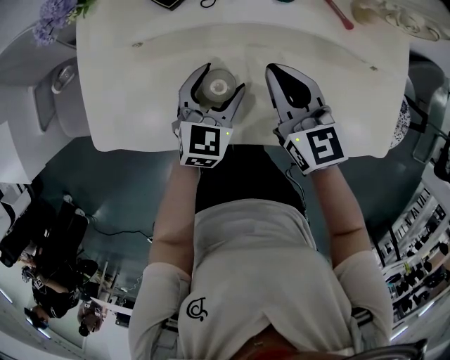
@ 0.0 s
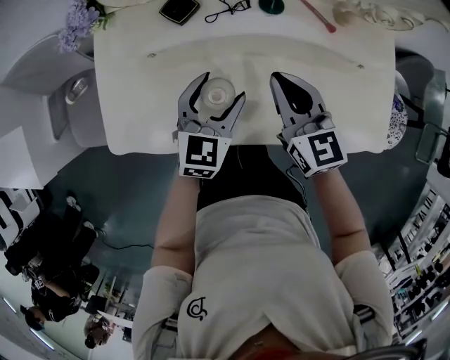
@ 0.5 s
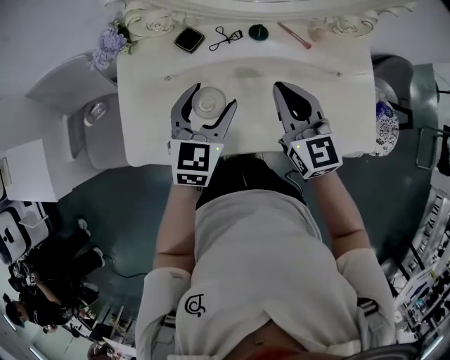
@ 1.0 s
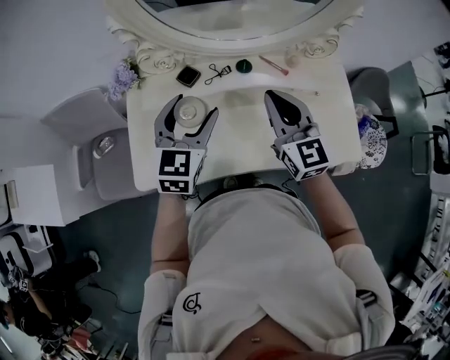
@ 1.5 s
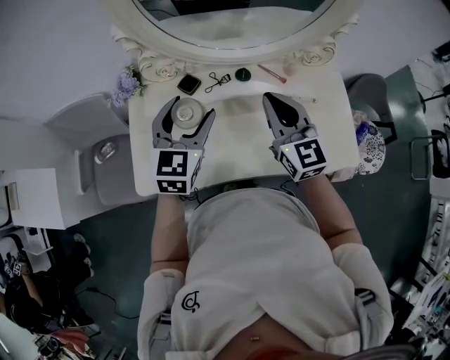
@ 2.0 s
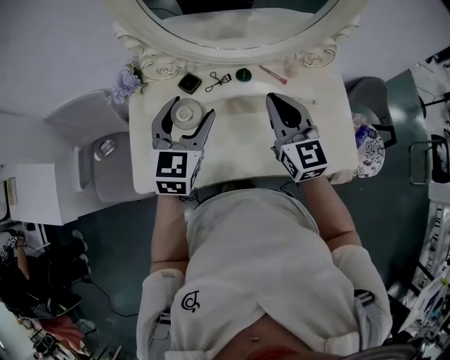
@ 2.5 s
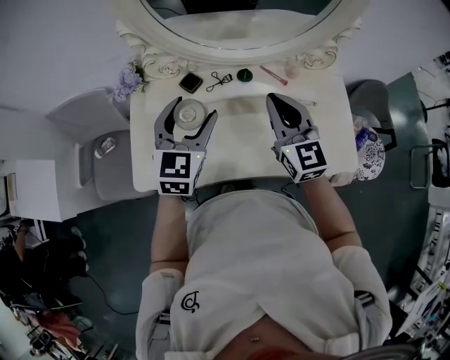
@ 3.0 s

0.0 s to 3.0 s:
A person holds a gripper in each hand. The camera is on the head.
0.0 to 1.5 s: The two grippers go about 25 cm upward. The right gripper changes its angle by approximately 20 degrees.
1.5 to 3.0 s: The grippers move only a little.

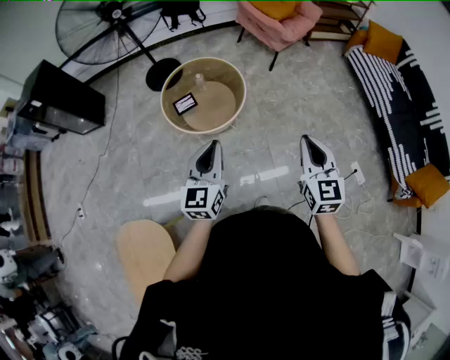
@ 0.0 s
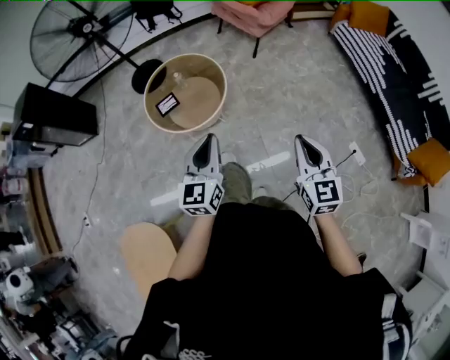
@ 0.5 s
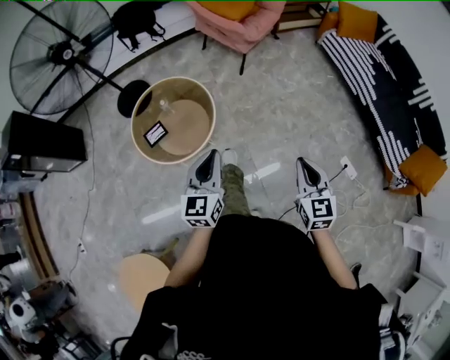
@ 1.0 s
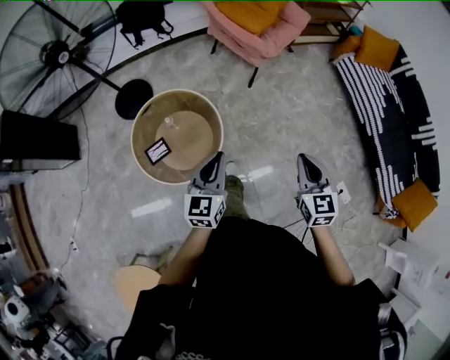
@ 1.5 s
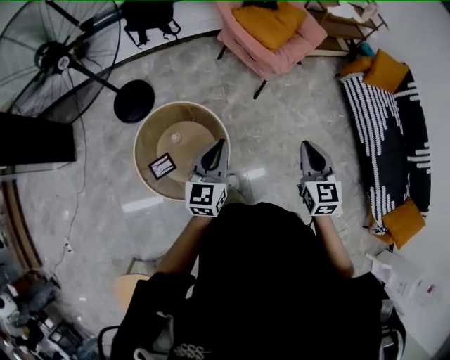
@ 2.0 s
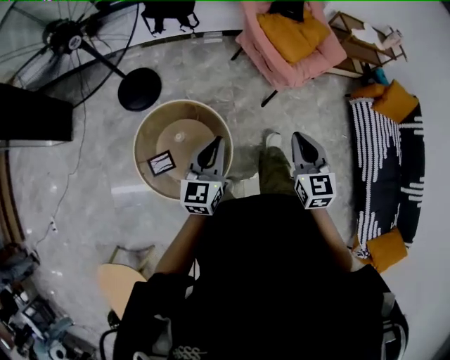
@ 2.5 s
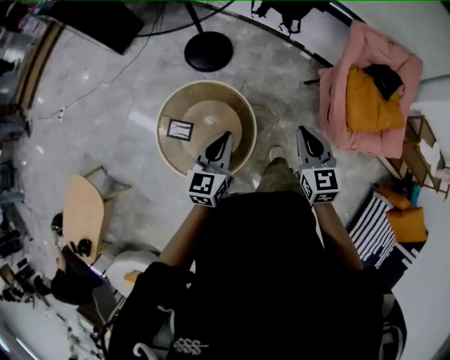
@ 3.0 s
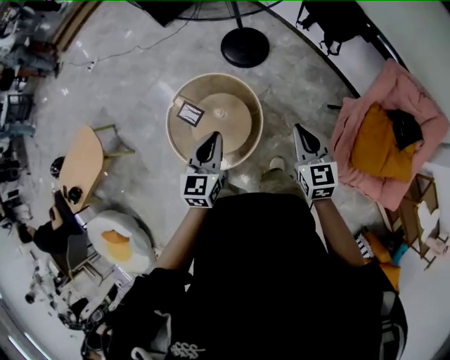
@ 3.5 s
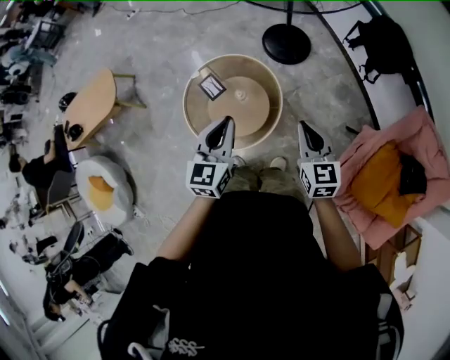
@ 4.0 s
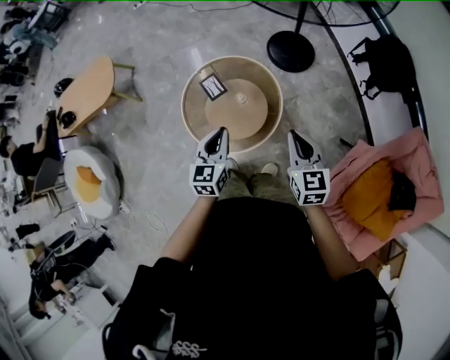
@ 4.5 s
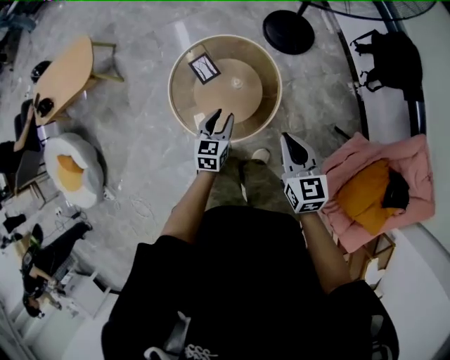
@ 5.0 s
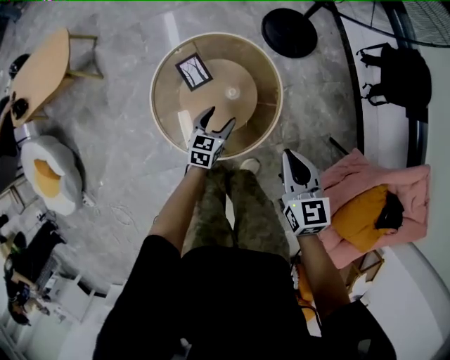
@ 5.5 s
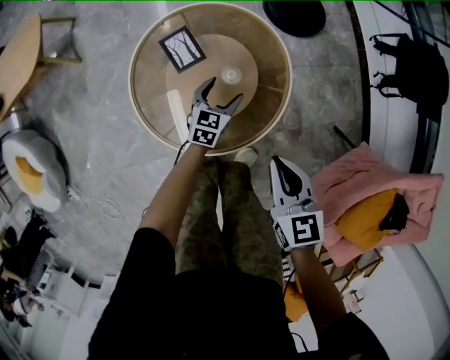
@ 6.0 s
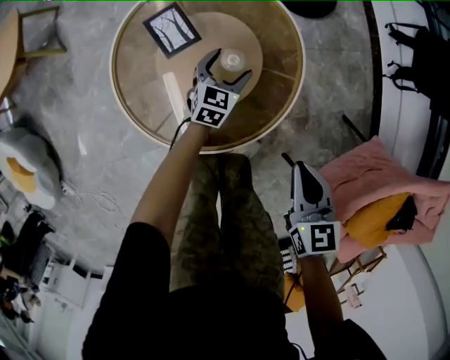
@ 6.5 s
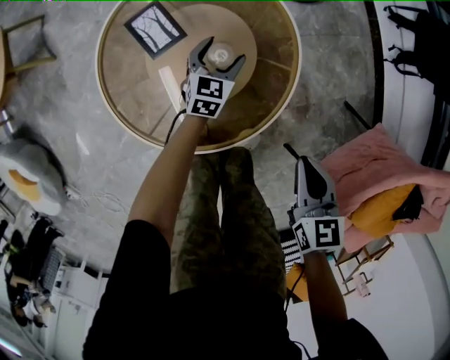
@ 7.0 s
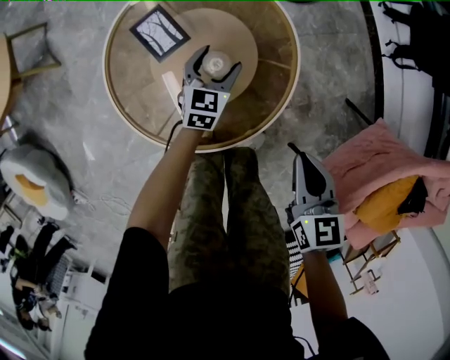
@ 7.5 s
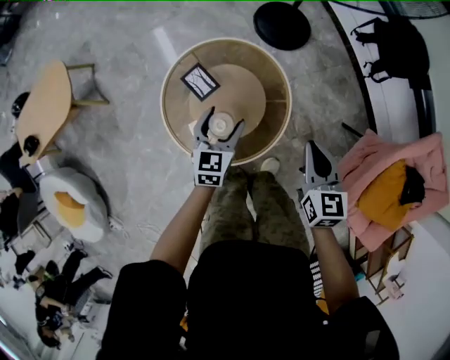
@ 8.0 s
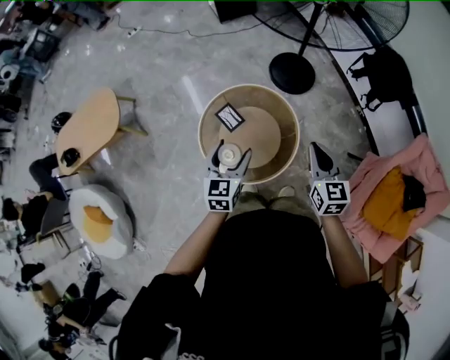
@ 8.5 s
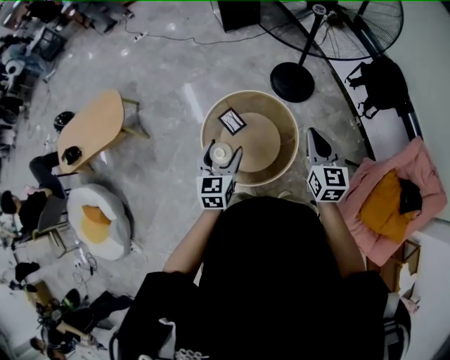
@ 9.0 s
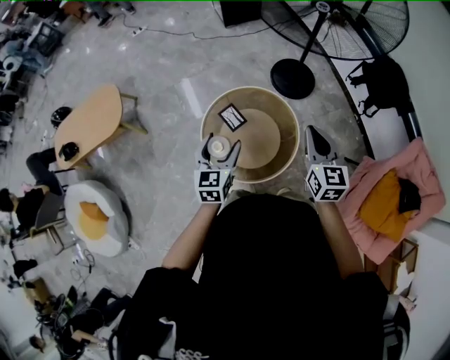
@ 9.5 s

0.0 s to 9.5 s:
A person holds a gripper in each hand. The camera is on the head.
0.0 to 2.0 s: The pair of grippers is taken forward, roughly 60 cm.
2.0 to 4.0 s: The right gripper changes place by approximately 40 cm, and rotates approximately 90 degrees; the left gripper ends up approximately 15 cm from where it was, and turns by roughly 80 degrees.
4.0 to 5.5 s: The right gripper is displaced downward, to the left and forward by roughly 25 cm. The left gripper shifts approximately 40 cm downward, turns by about 20 degrees, and opens.
5.5 to 7.5 s: The left gripper moves downward and forward, roughly 20 cm, while the right gripper travels downward by some 20 cm.
7.5 to 9.5 s: The grippers both shift upward by approximately 50 cm. The right gripper changes its angle by roughly 30 degrees.

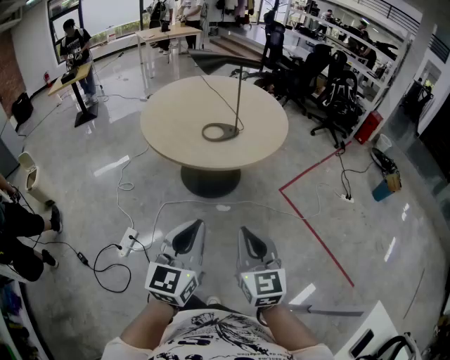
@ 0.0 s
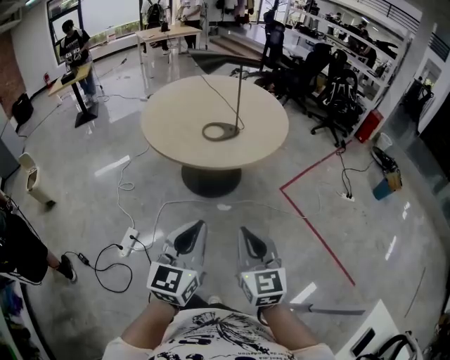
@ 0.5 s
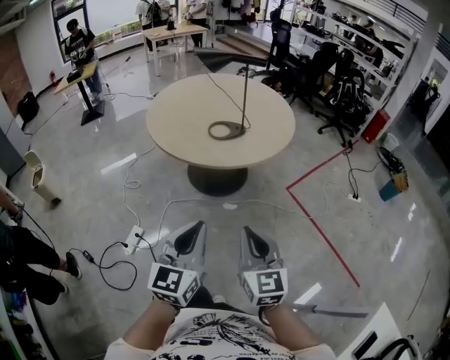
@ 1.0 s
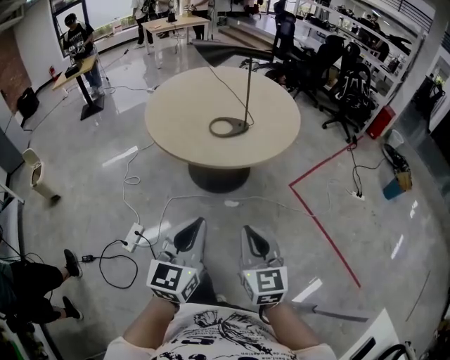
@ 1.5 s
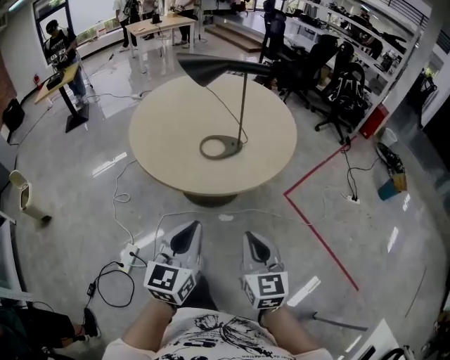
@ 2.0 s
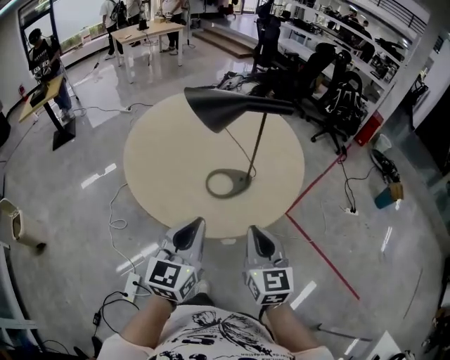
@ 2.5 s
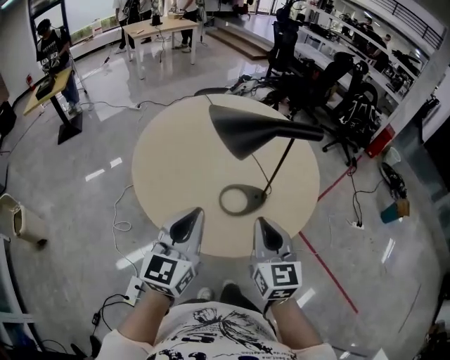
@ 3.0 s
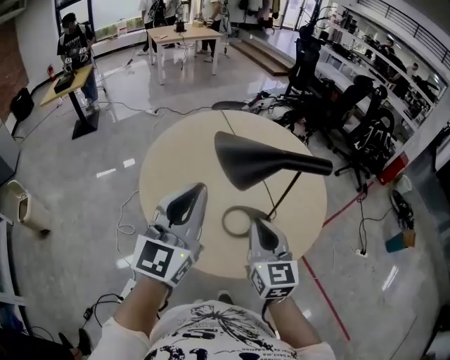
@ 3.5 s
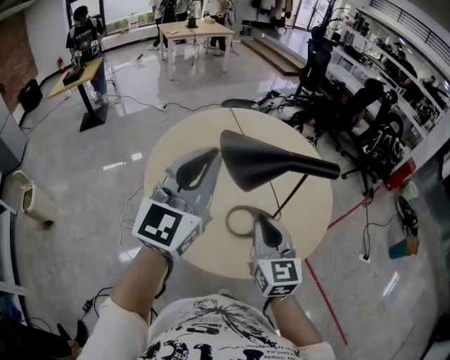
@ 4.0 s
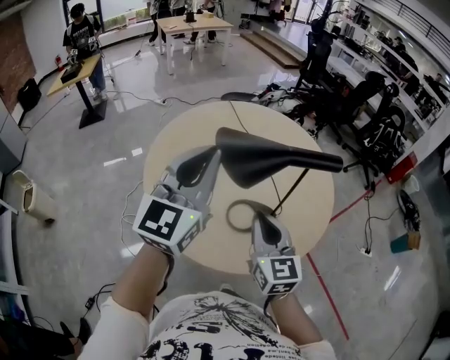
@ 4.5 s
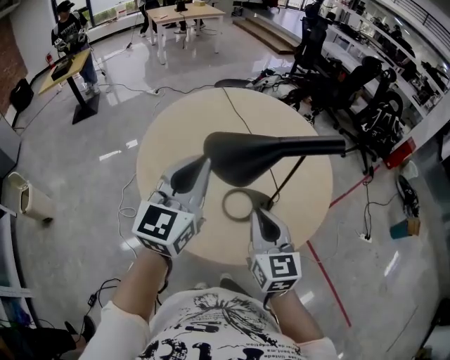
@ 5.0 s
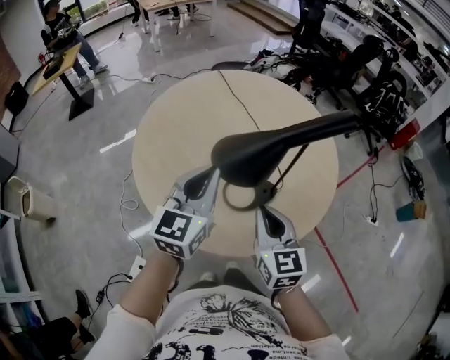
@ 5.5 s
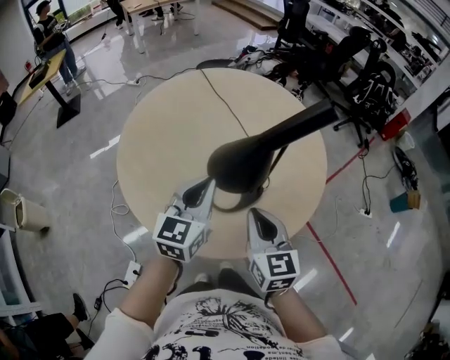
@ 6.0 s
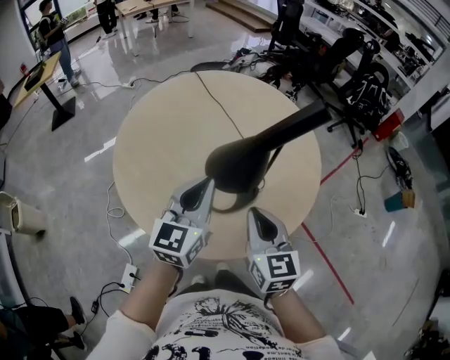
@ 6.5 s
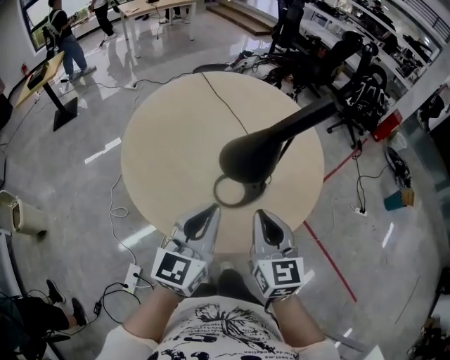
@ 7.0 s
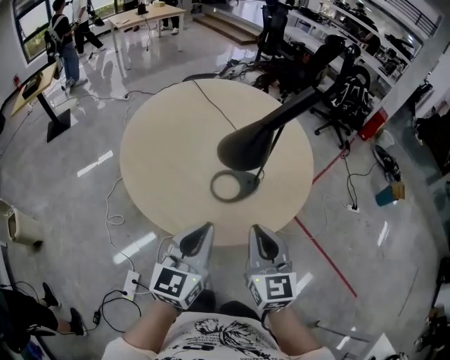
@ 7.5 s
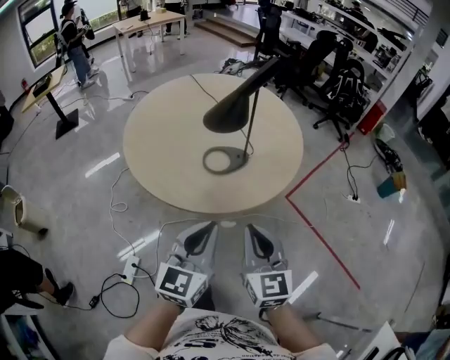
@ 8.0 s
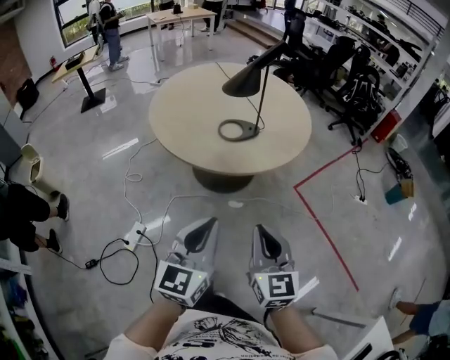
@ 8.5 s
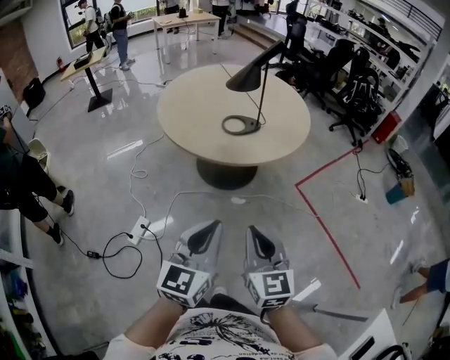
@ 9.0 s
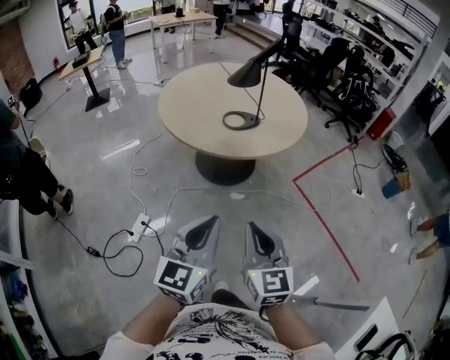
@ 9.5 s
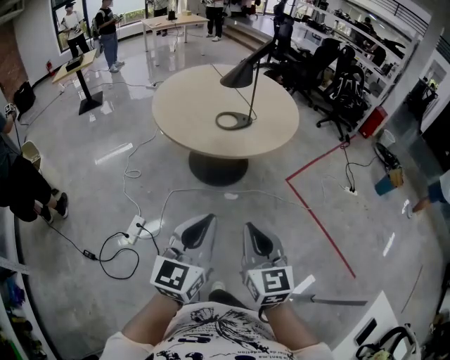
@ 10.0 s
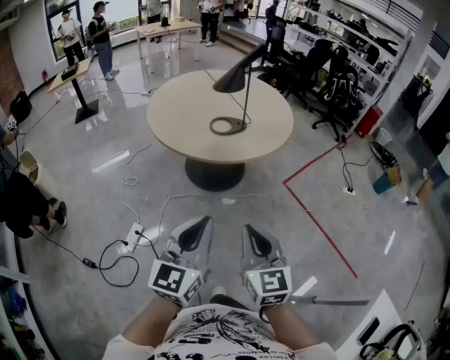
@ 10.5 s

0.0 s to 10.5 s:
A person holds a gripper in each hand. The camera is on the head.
0.0 to 2.0 s: Both grippers move forward, approximately 15 cm.
2.0 to 4.0 s: The left gripper heads forward and upward, covering some 40 cm, and rotates some 20 degrees. The right gripper is displaced forward by approximately 30 cm.
4.0 to 6.5 s: The right gripper moves to the right and downward, about 5 cm. The left gripper moves downward and to the right, some 20 cm, and changes its angle by about 20 degrees.
6.5 to 8.5 s: Both grippers move backward, approximately 40 cm.
8.5 to 10.5 s: The two grippers go roughly 10 cm backward.

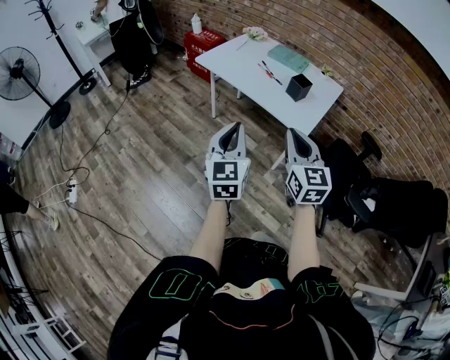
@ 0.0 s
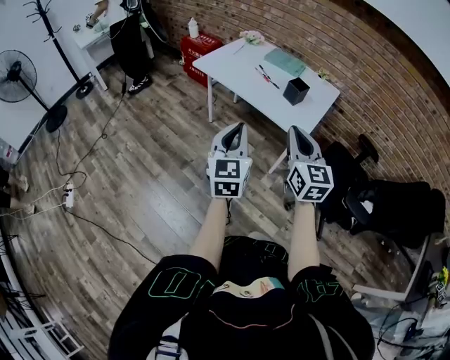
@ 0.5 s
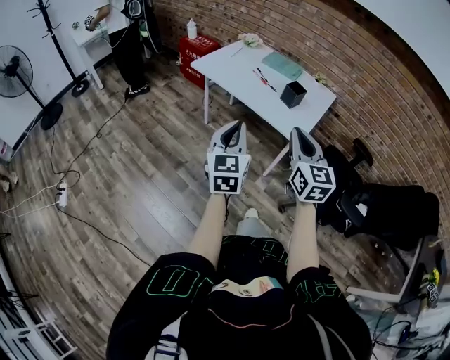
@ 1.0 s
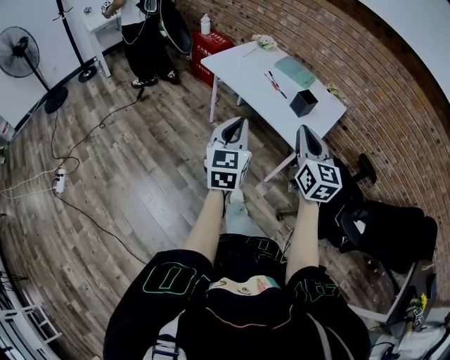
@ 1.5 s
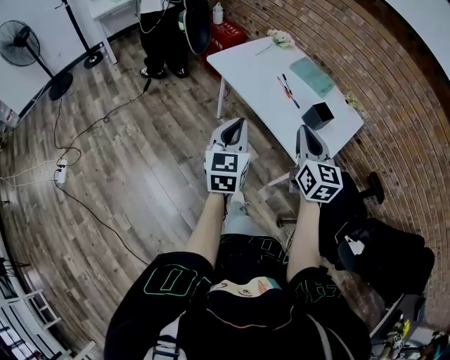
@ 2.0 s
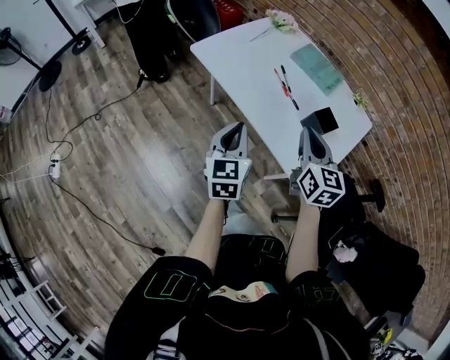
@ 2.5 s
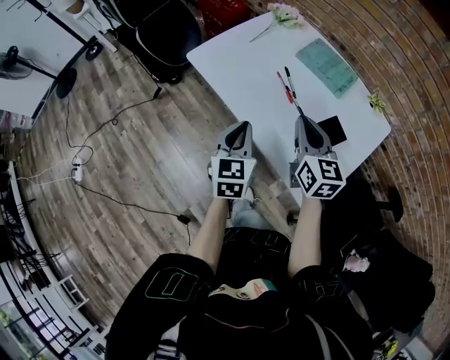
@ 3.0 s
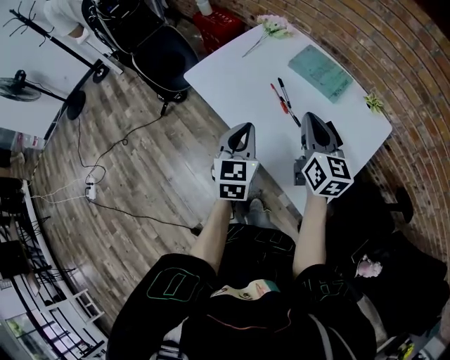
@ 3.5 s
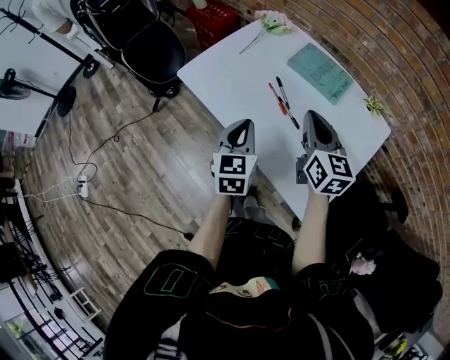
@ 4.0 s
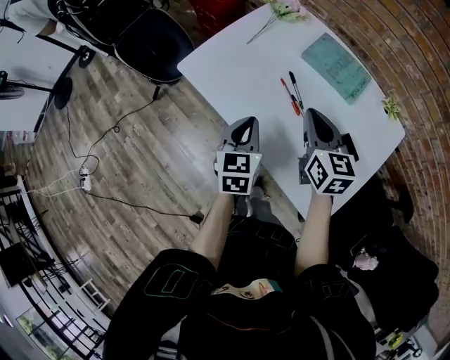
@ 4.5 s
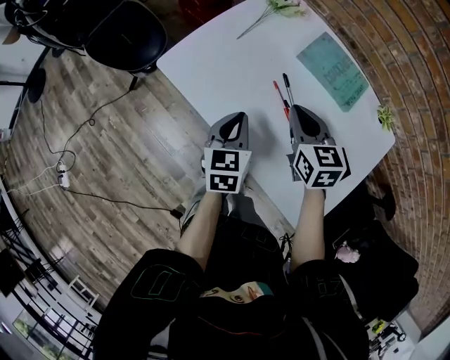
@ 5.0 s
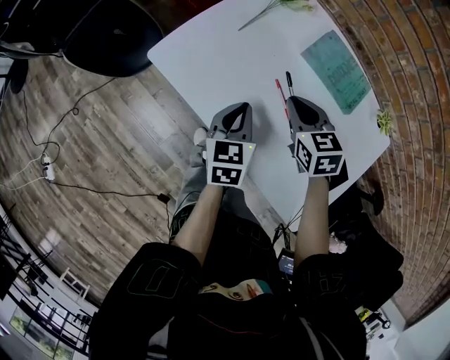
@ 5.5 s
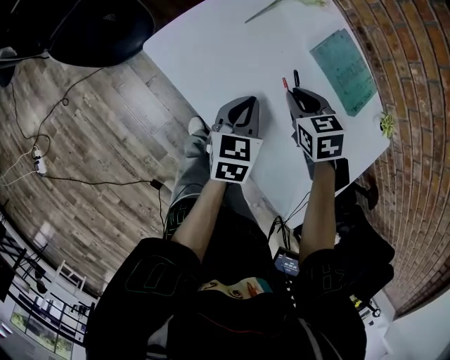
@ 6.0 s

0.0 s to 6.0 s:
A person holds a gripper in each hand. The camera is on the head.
0.0 to 2.0 s: The two grippers go roughly 20 cm forward.
2.0 to 4.0 s: The grippers both shift forward and to the right by about 30 cm.
4.0 to 6.0 s: The left gripper goes approximately 20 cm forward and downward, and changes its angle by roughly 20 degrees; the right gripper is displaced downward, forward and to the left by some 25 cm, and angles its fingers downward, by approximately 40 degrees.
